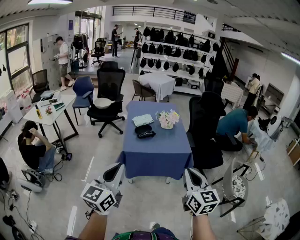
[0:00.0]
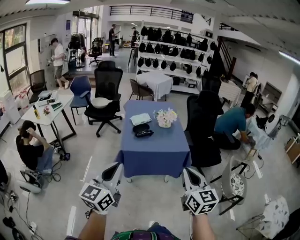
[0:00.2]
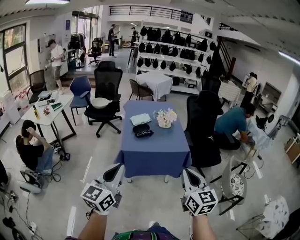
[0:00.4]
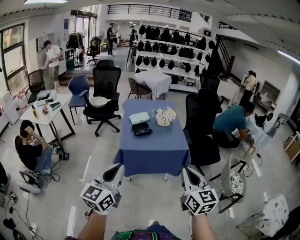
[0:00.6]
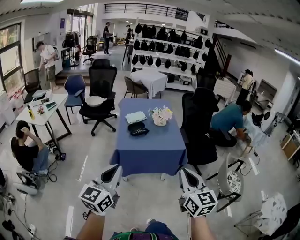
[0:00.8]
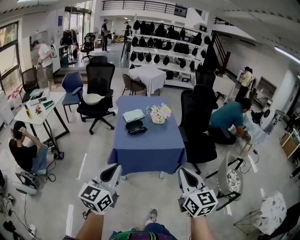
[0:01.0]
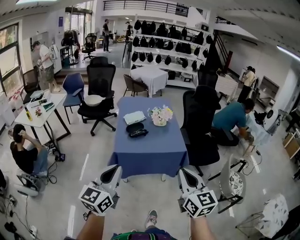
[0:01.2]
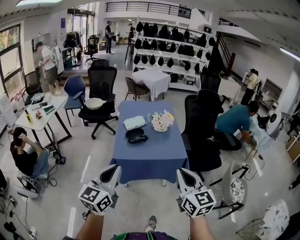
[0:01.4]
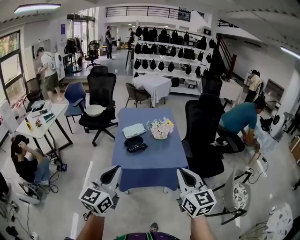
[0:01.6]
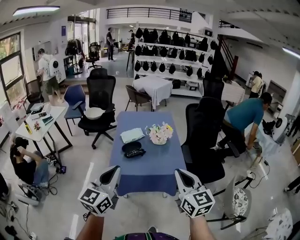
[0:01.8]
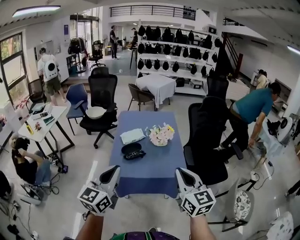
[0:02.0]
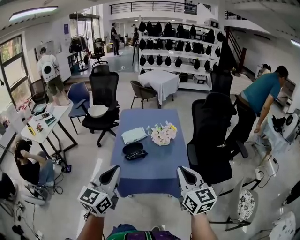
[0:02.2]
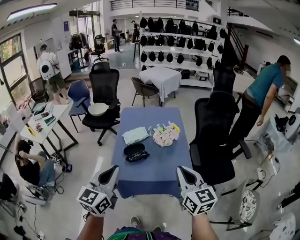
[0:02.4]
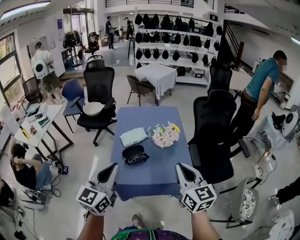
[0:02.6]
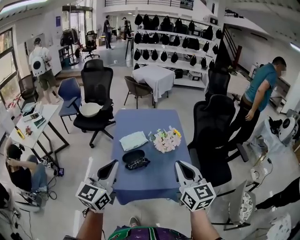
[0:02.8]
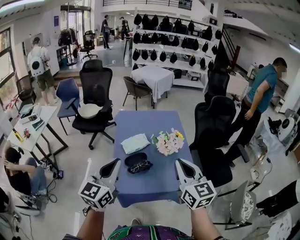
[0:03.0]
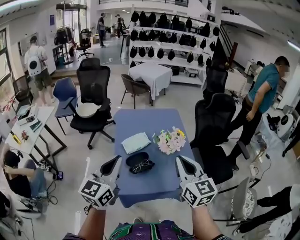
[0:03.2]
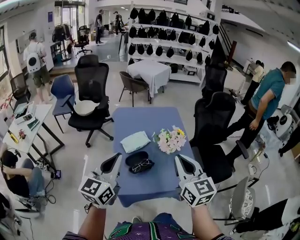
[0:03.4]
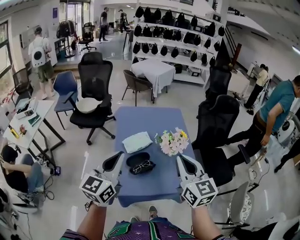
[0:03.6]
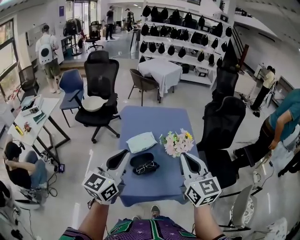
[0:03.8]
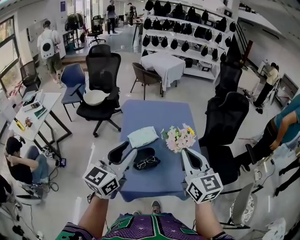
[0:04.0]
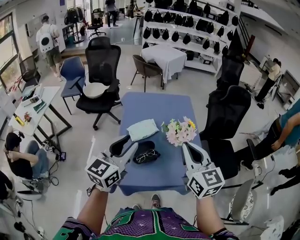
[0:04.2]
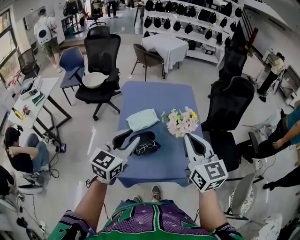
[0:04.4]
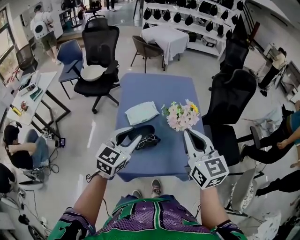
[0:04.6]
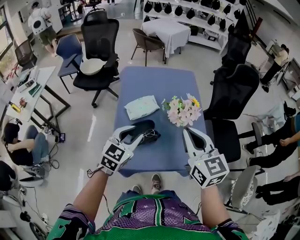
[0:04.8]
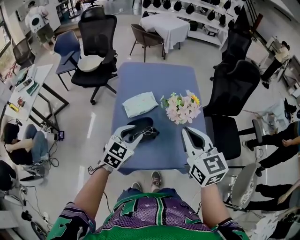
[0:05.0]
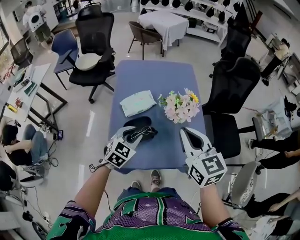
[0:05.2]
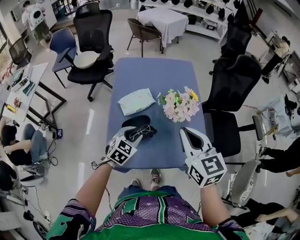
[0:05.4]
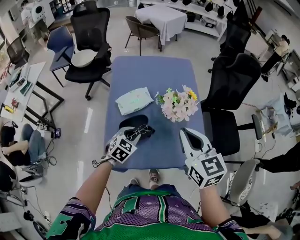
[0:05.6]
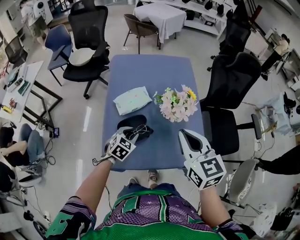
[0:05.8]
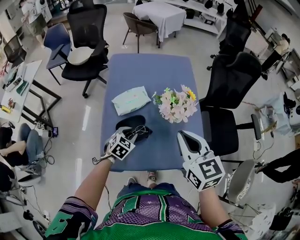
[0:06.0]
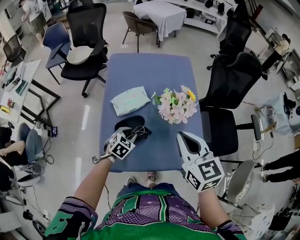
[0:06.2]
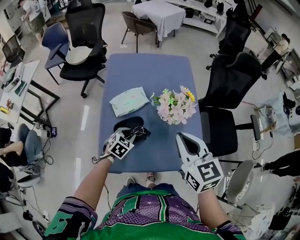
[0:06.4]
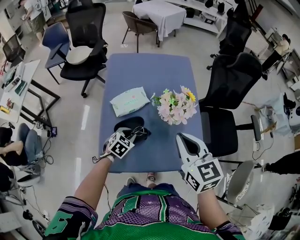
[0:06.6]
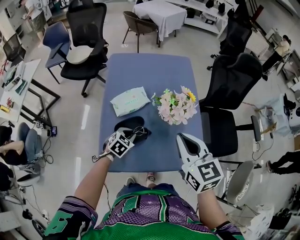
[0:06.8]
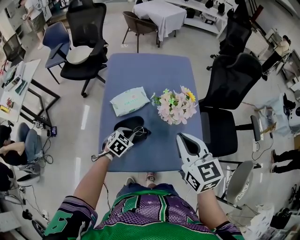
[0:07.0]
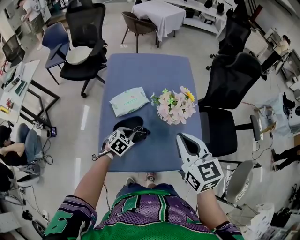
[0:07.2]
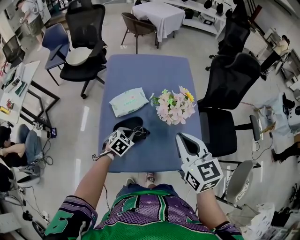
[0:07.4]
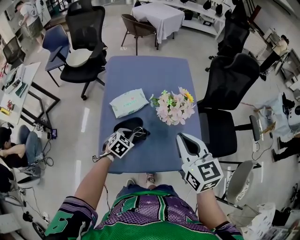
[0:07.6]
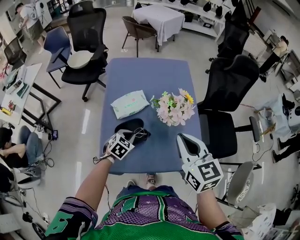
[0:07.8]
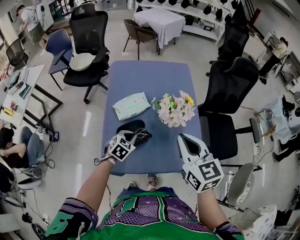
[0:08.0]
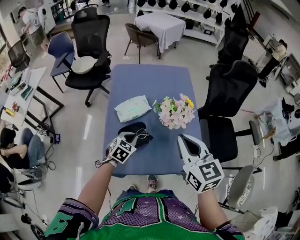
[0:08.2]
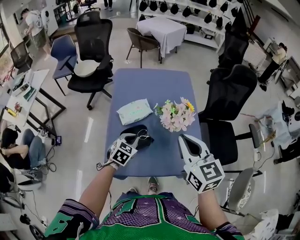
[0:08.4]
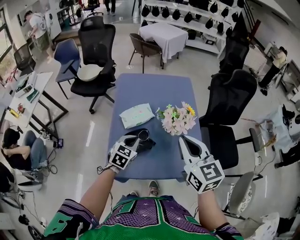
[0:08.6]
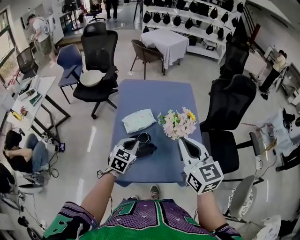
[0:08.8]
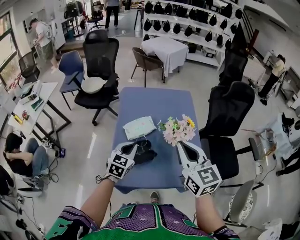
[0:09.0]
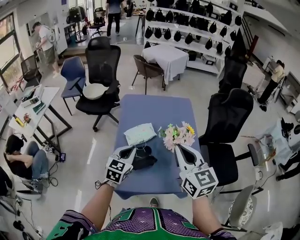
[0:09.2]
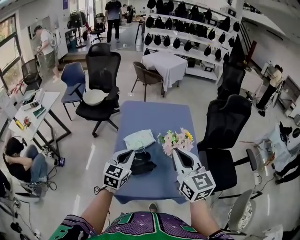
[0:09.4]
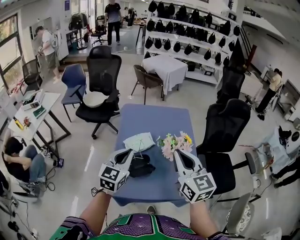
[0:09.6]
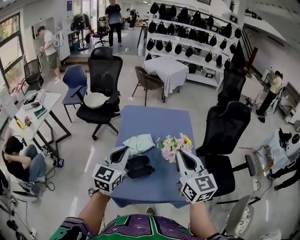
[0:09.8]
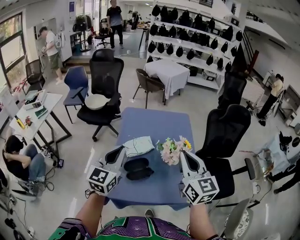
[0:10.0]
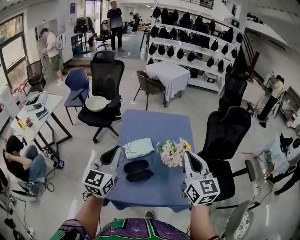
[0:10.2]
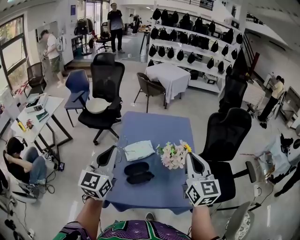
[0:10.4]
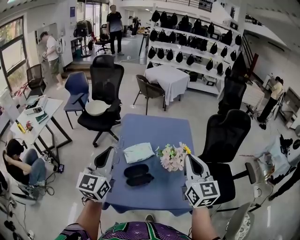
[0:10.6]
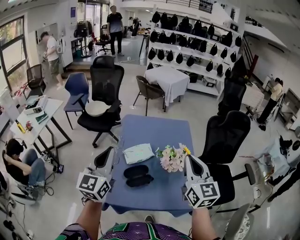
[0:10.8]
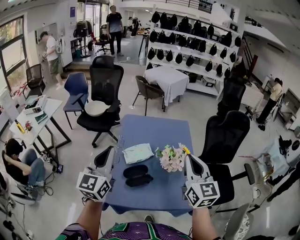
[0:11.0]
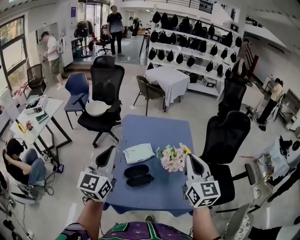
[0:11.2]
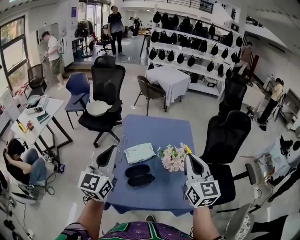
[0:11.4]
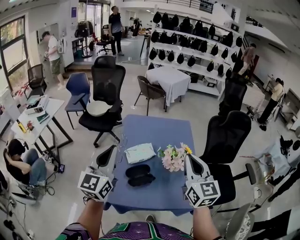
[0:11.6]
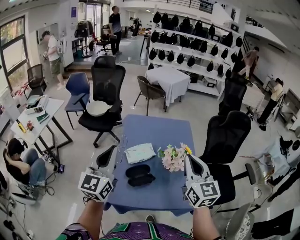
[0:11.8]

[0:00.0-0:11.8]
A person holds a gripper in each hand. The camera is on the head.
0:00.0 to 0:01.4: The grippers both shift forward by approximately 10 cm.
0:01.4 to 0:03.0: Both grippers move forward, some 35 cm.
0:03.0 to 0:04.4: The left gripper travels forward and downward by some 15 cm, and opens up; the right gripper heads forward, covering approximately 10 cm.
0:04.4 to 0:06.0: The left gripper goes about 30 cm downward, and angles its fingers downward, by some 40 degrees, while the right gripper goes approximately 10 cm downward.
0:06.0 to 0:07.4: The left gripper closes its fingers.
0:07.4 to 0:08.8: The right gripper goes about 5 cm upward. The left gripper is displaced upward by about 15 cm, and changes its angle by about 20 degrees.
0:08.8 to 0:10.4: The left gripper goes approximately 25 cm upward, and points its fingers roughly 40 degrees further upward. Meanwhile the right gripper goes about 5 cm upward.
0:10.4 to 0:11.8: The grippers stay close to where they were, moving slightly.

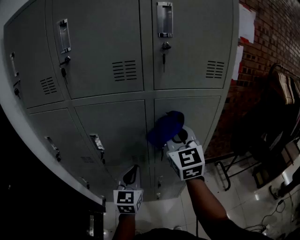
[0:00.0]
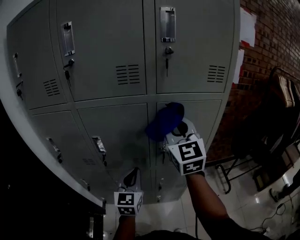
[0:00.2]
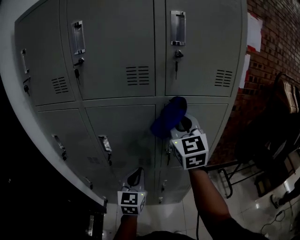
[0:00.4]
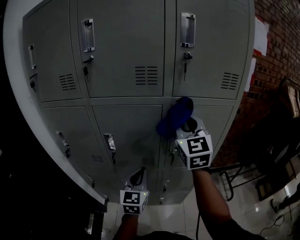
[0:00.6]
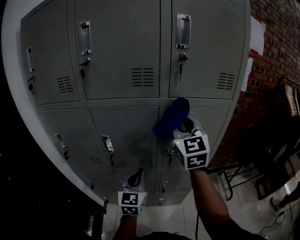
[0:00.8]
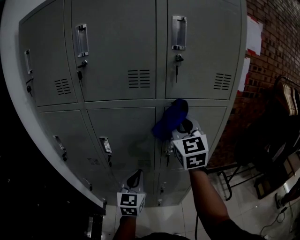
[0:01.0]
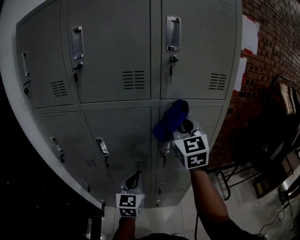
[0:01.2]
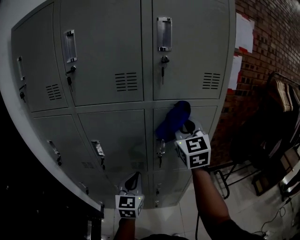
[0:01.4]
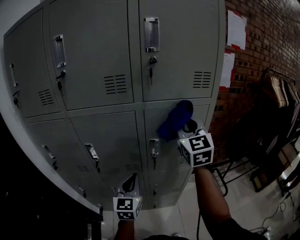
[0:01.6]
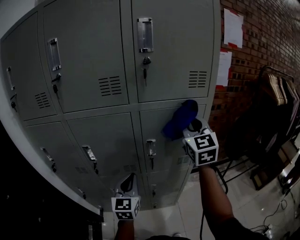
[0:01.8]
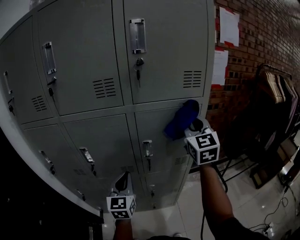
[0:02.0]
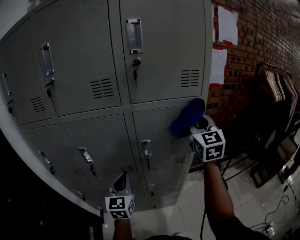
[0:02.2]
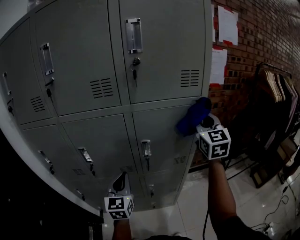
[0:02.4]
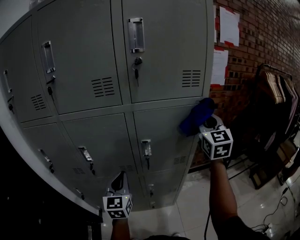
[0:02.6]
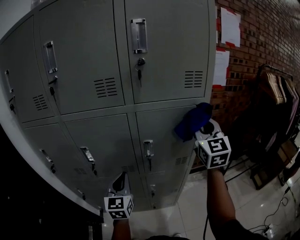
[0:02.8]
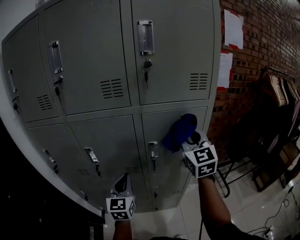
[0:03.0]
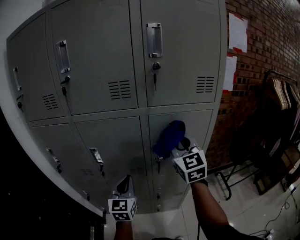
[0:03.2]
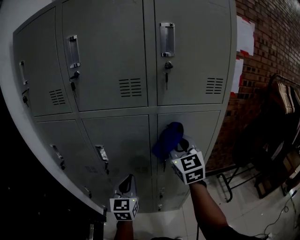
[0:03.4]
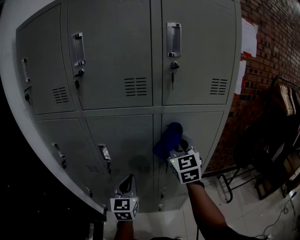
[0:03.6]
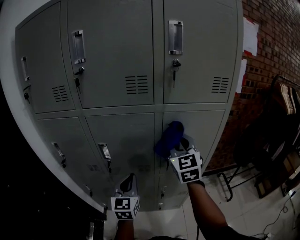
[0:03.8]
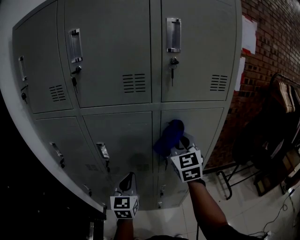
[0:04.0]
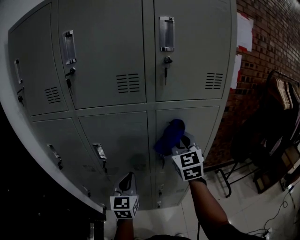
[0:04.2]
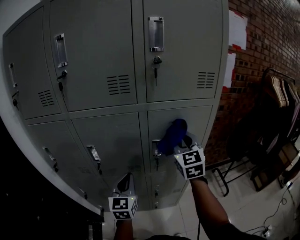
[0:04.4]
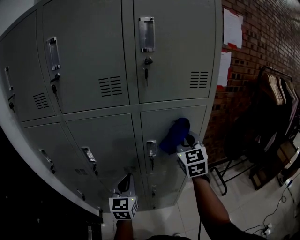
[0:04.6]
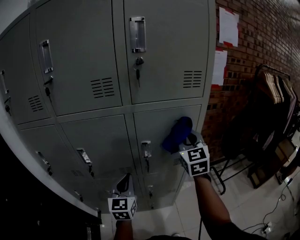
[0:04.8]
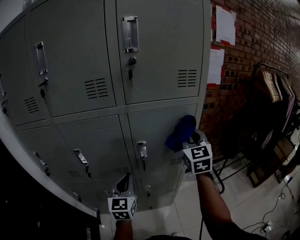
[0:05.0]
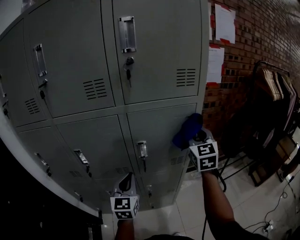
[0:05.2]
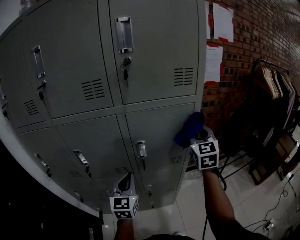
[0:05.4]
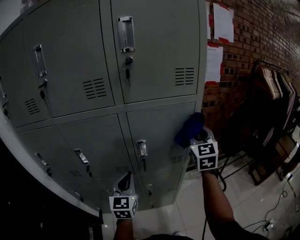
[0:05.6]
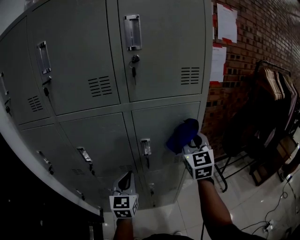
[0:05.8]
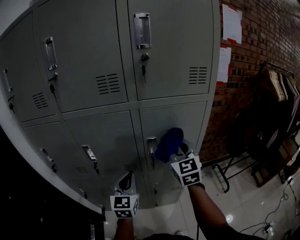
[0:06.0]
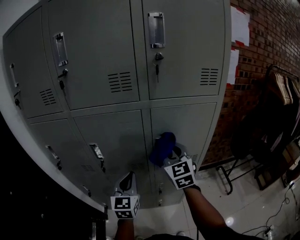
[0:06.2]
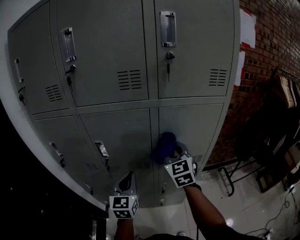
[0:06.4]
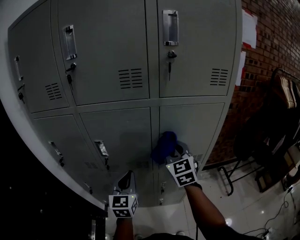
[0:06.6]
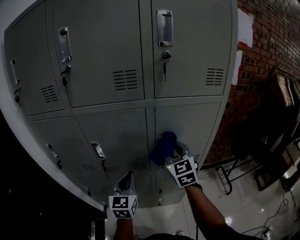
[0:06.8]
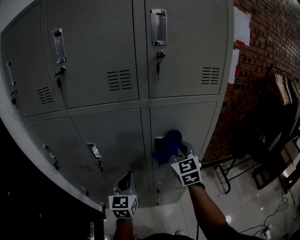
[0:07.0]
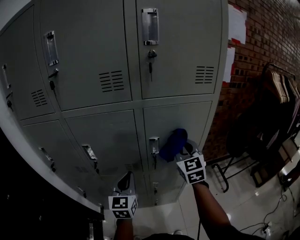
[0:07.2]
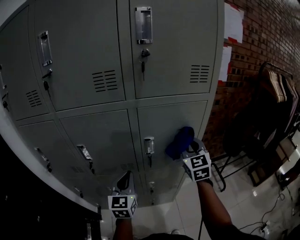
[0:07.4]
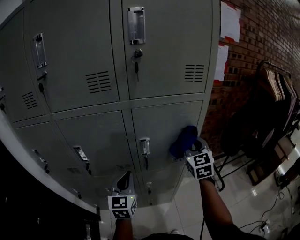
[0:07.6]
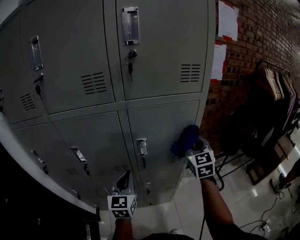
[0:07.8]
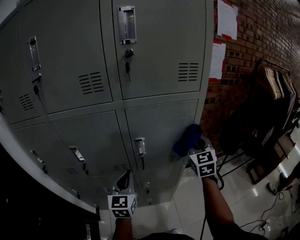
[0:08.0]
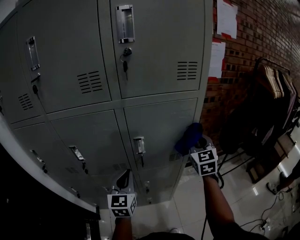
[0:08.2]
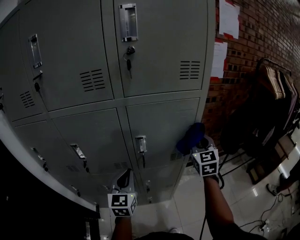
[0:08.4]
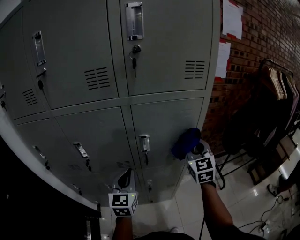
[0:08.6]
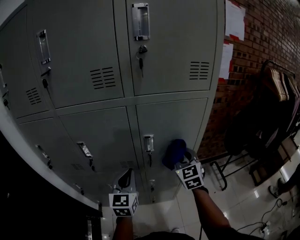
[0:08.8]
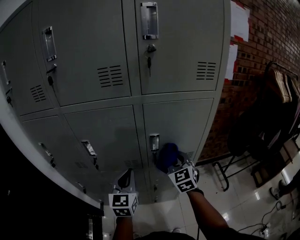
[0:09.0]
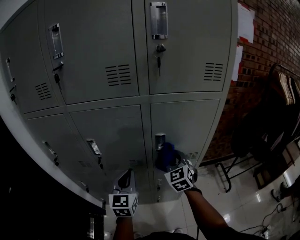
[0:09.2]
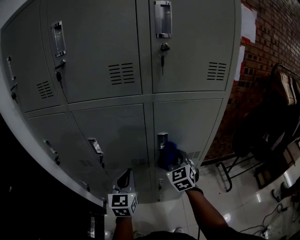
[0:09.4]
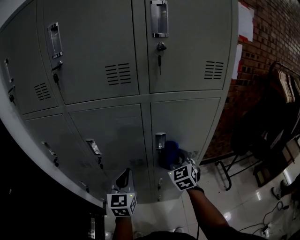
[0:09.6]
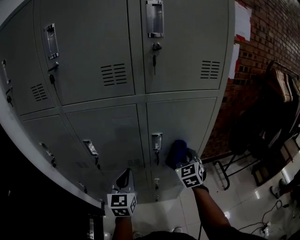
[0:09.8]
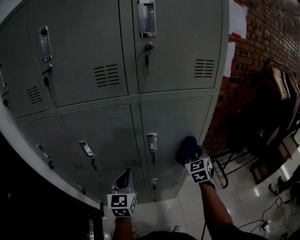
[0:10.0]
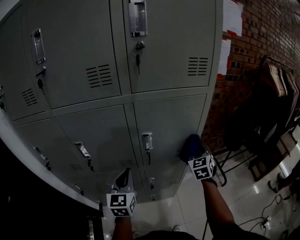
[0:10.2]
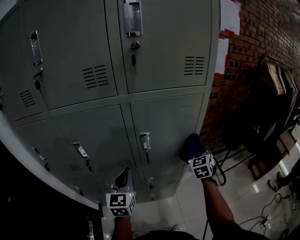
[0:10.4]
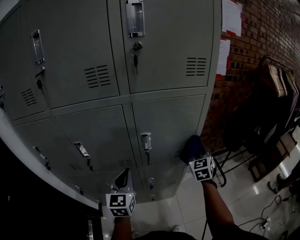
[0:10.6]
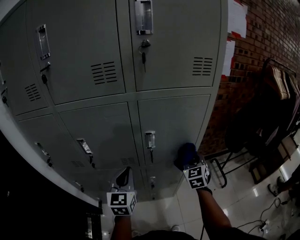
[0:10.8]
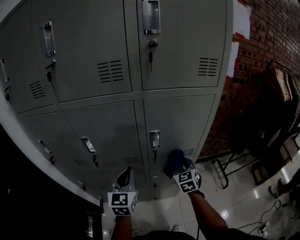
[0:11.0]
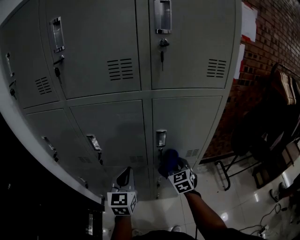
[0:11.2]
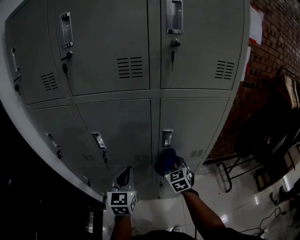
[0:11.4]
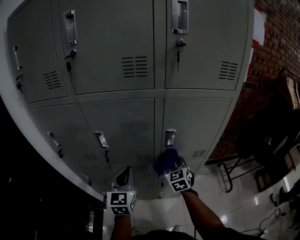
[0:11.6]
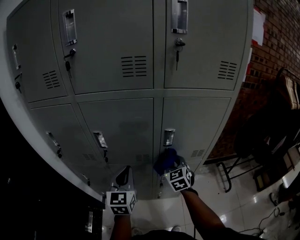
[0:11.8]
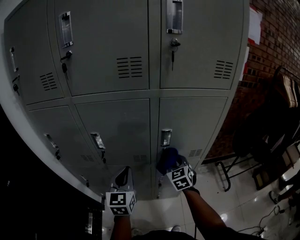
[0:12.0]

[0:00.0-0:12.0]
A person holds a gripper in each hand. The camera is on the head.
0:00.0 to 0:01.6: The right gripper shifts some 10 cm to the right.
0:01.6 to 0:03.0: The right gripper moves some 15 cm to the right and comes back.
0:04.4 to 0:06.0: The right gripper reaches about 15 cm to the right, then returns.
0:06.0 to 0:07.6: The left gripper moves approximately 5 cm to the left and comes back, while the right gripper shifts roughly 10 cm to the right.
0:07.6 to 0:09.0: The right gripper goes approximately 15 cm to the left and downward.
0:09.0 to 0:10.4: The right gripper travels to the right by approximately 15 cm.
0:10.4 to 0:12.0: The left gripper goes approximately 5 cm to the left, while the right gripper is displaced to the left by approximately 20 cm.
